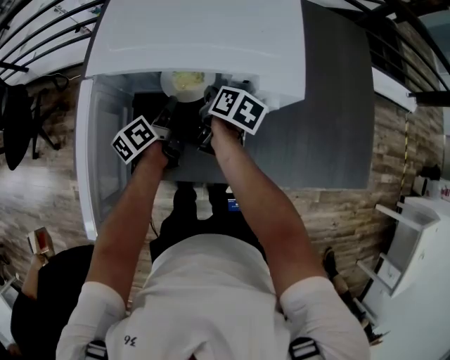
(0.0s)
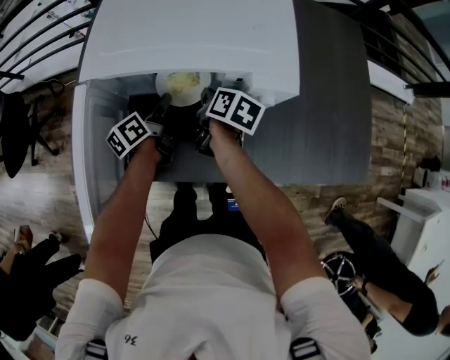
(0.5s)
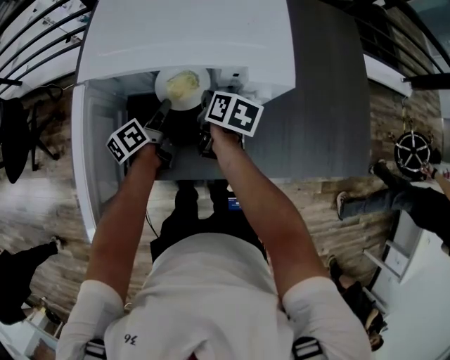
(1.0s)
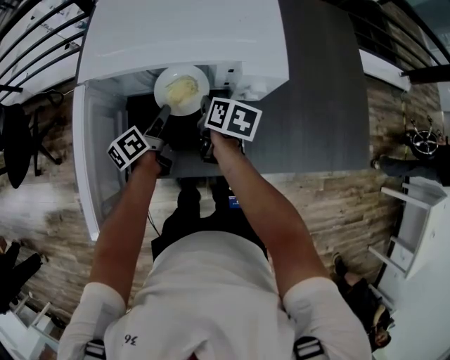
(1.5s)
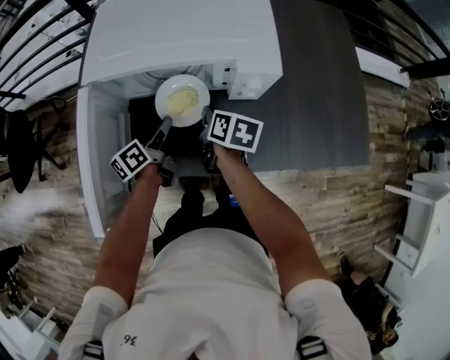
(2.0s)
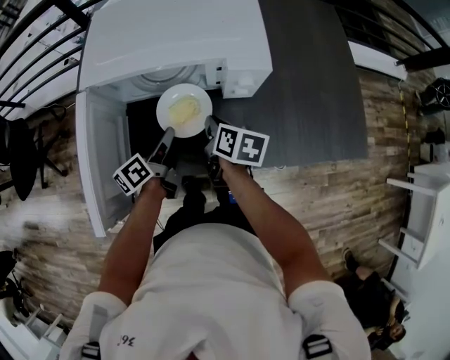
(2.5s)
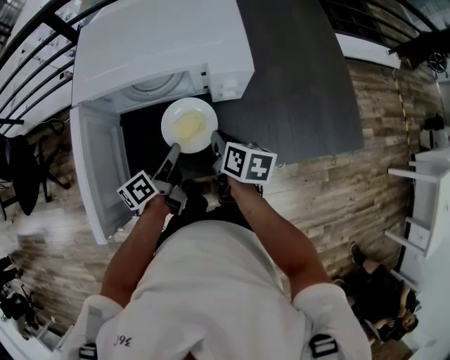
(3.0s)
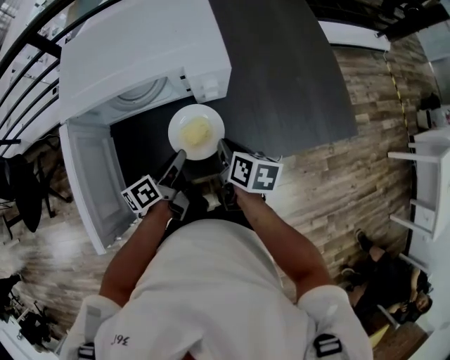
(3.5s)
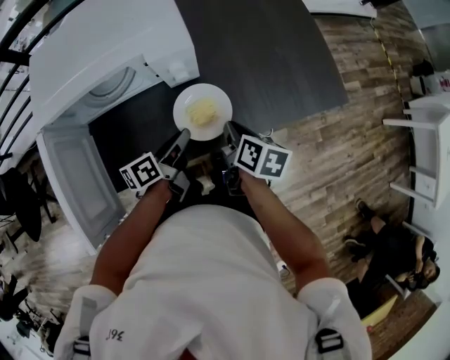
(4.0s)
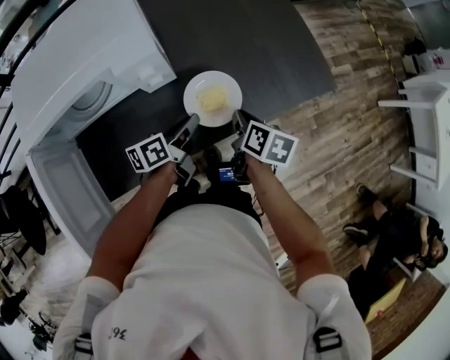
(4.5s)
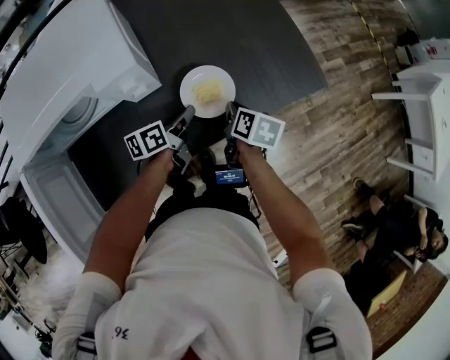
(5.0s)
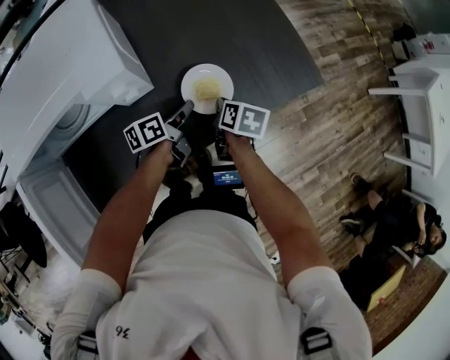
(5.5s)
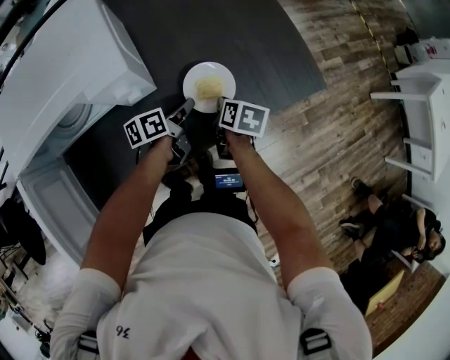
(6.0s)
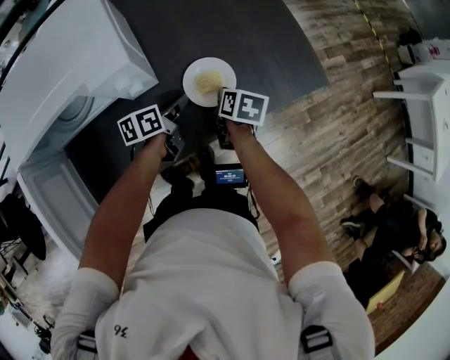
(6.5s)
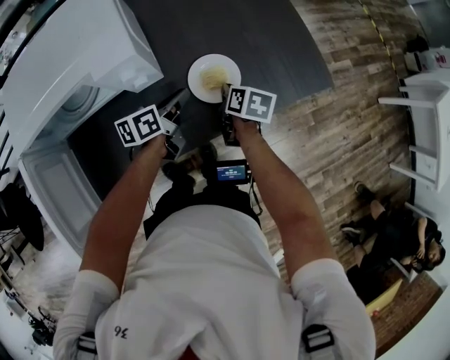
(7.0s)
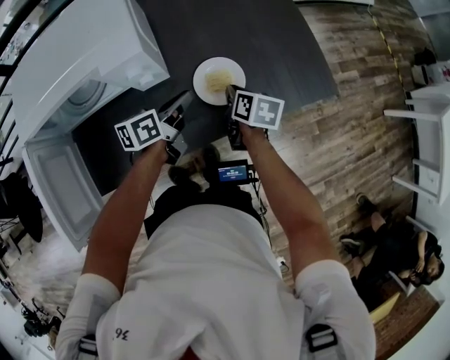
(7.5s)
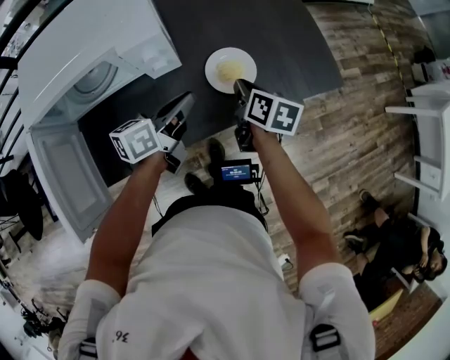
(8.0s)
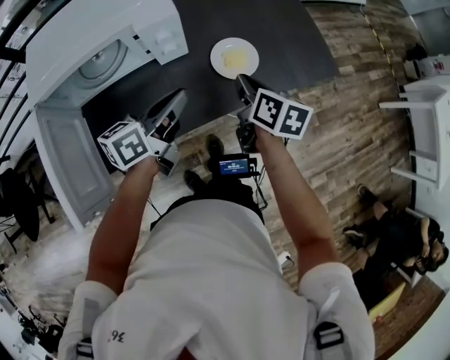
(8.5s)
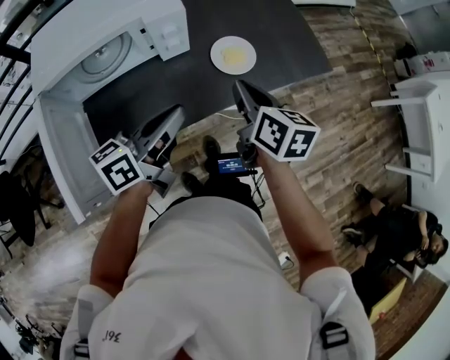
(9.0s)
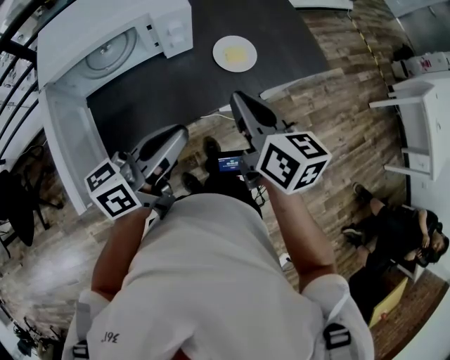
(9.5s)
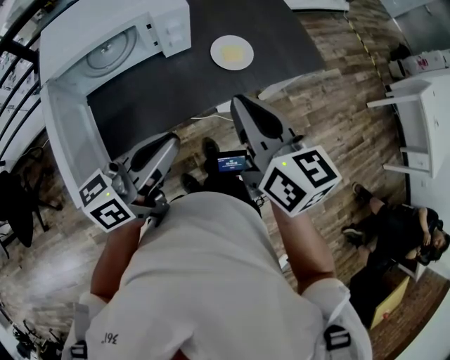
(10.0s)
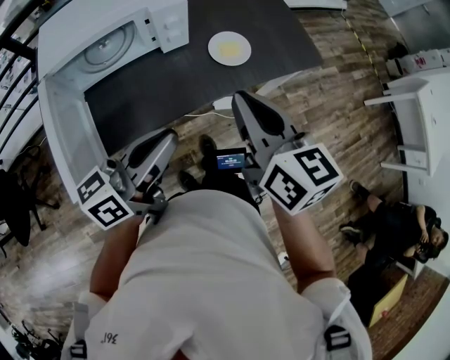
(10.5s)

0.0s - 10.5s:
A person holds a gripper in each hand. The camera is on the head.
0.0s - 2.0s: The grippers both shift backward by approximately 5 cm.
2.0s - 4.0s: The right gripper travels to the right and backward by about 25 cm. The left gripper moves to the right, some 20 cm, and rotates some 30 degrees.
4.0s - 6.5s: The left gripper is displaced forward, to the right and downward by roughly 20 cm; the right gripper shifts about 15 cm forward, downward and to the right.
6.5s - 8.5s: Both grippers travel together upward and backward, roughly 20 cm. The left gripper rotates approximately 20 degrees, while the right gripper rotates approximately 20 degrees.
8.5s - 10.5s: The grippers both shift backward and upward by some 25 cm. The right gripper changes its angle by about 30 degrees.

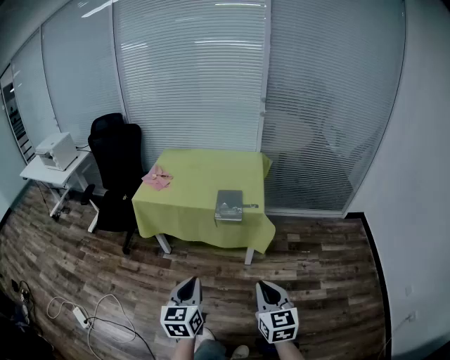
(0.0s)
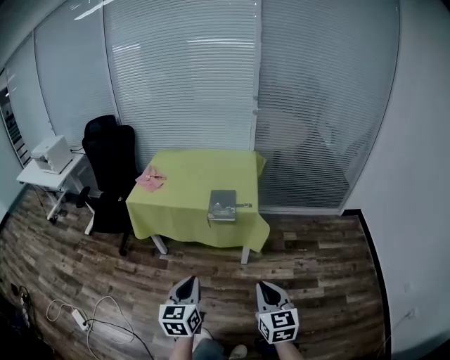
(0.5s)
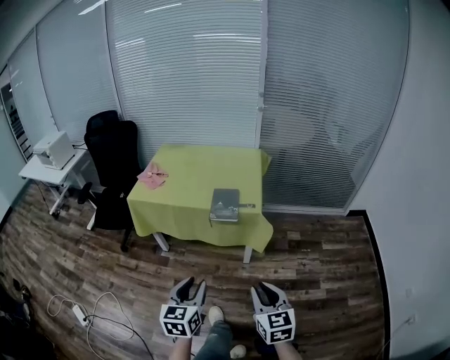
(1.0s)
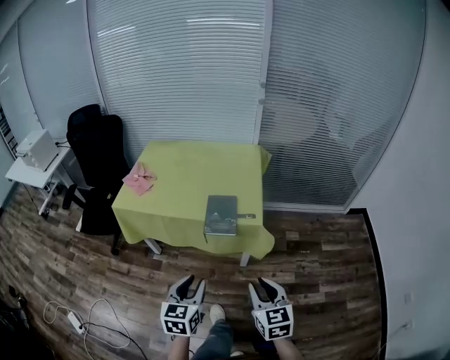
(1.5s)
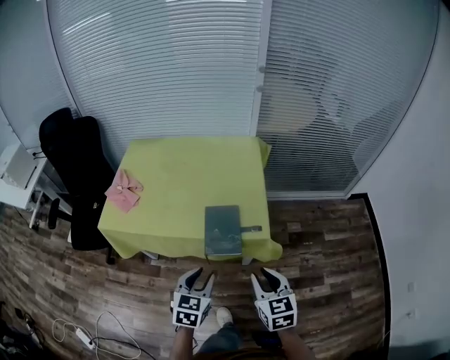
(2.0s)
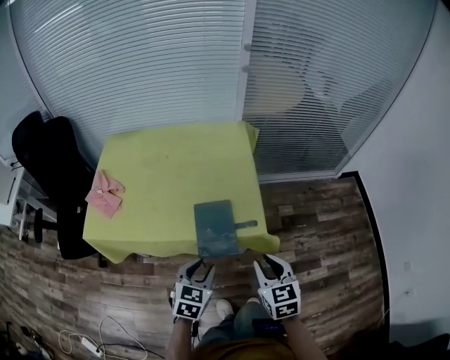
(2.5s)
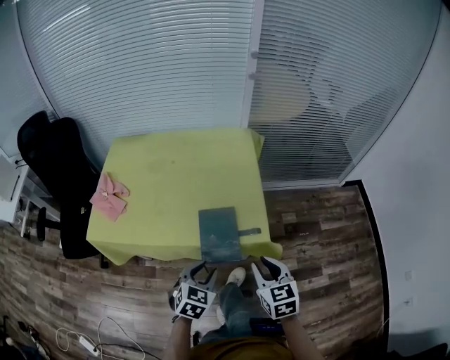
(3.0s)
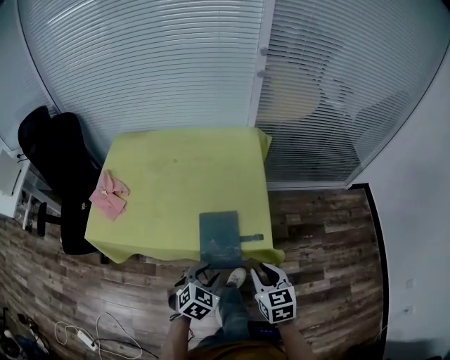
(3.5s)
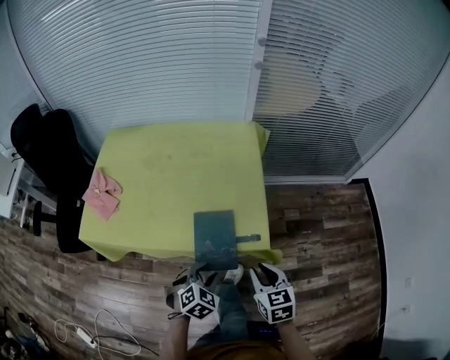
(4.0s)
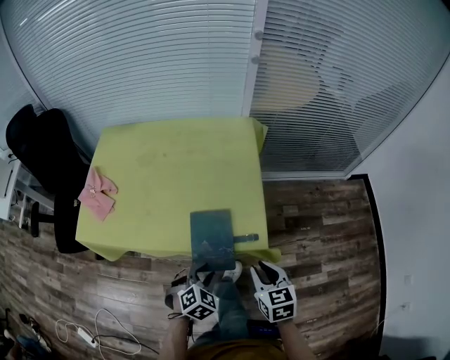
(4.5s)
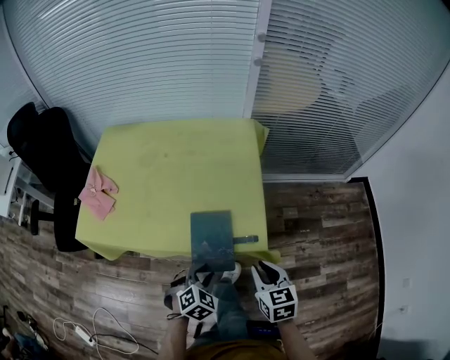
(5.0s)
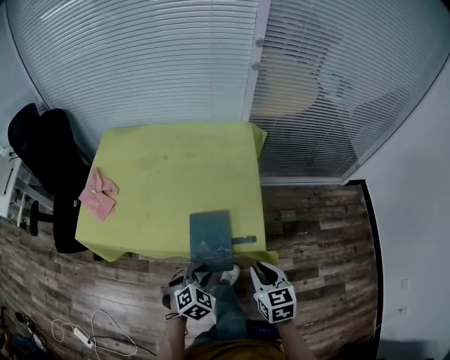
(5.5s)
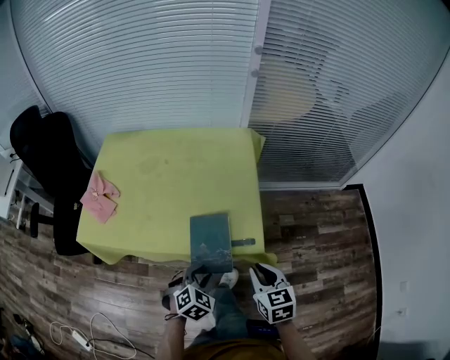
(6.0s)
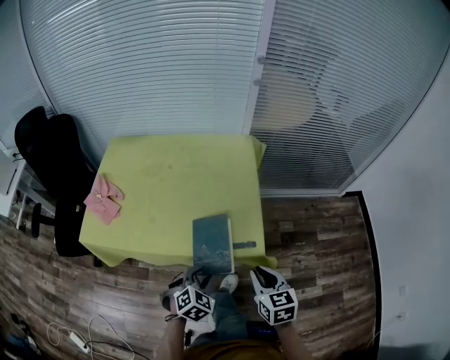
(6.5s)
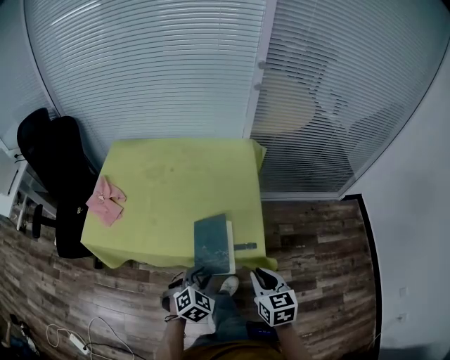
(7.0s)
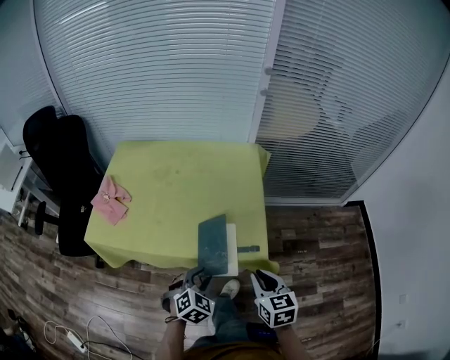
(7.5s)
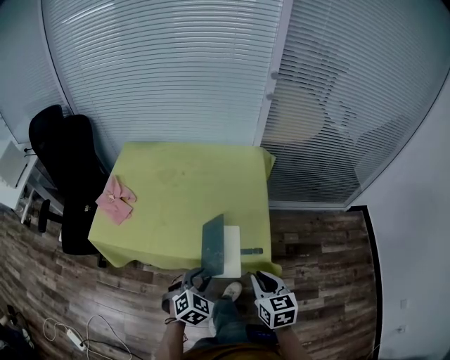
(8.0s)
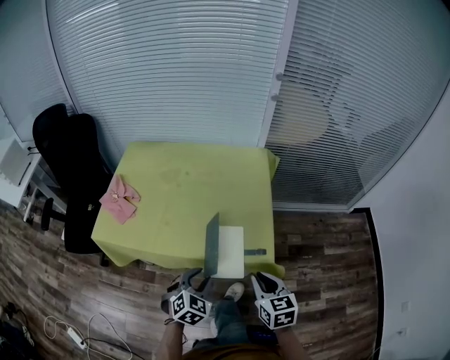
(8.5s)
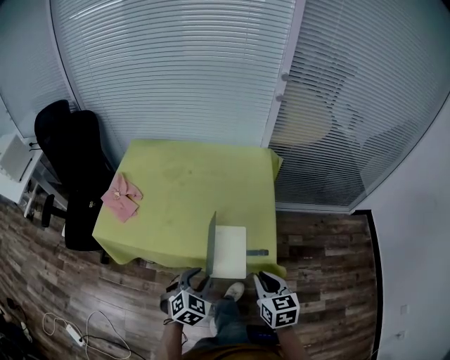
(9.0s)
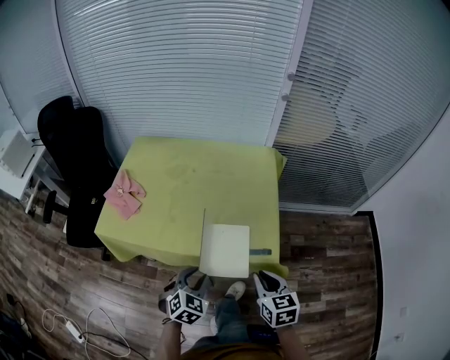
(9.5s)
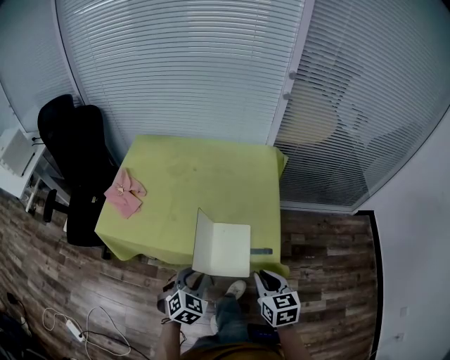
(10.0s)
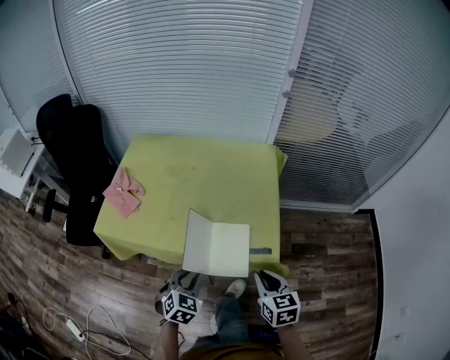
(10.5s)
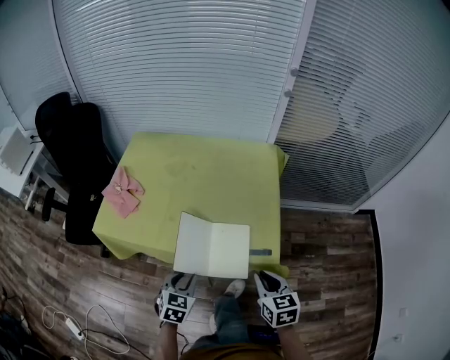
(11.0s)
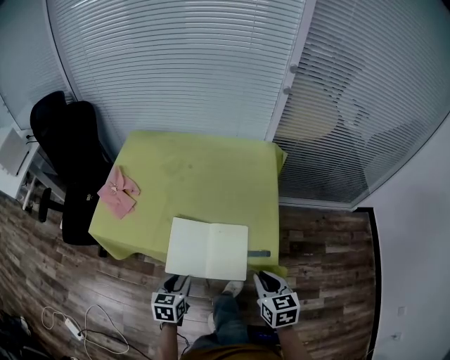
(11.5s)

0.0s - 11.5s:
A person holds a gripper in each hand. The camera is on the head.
0.0s - 2.0s: Both grippers move forward, about 30 cm. The left gripper turns by approximately 30 degrees, and opens. The right gripper opens.
2.0s - 4.0s: The left gripper moves downward and forward, about 15 cm, and swivels some 30 degrees. Meanwhile the right gripper is displaced forward and downward by approximately 15 cm.
4.0s - 7.5s: There are only small adjustments of the grippers.
7.5s - 9.5s: The left gripper is displaced to the left by about 5 cm.
9.5s - 11.5s: The left gripper goes some 10 cm to the left and downward, and turns by about 40 degrees.

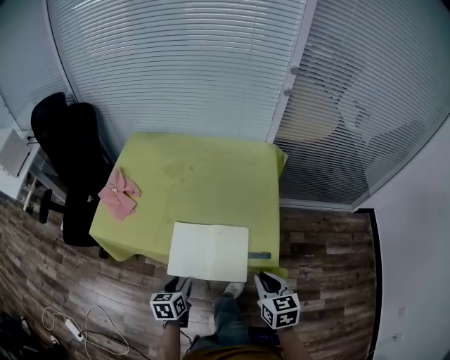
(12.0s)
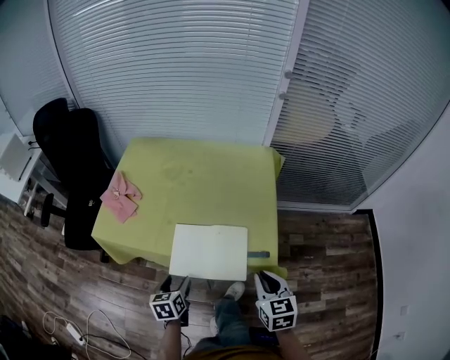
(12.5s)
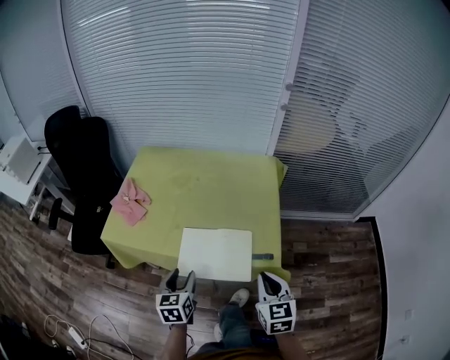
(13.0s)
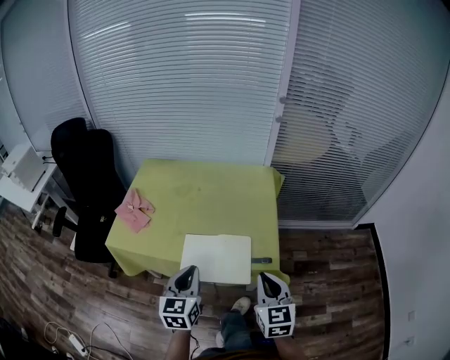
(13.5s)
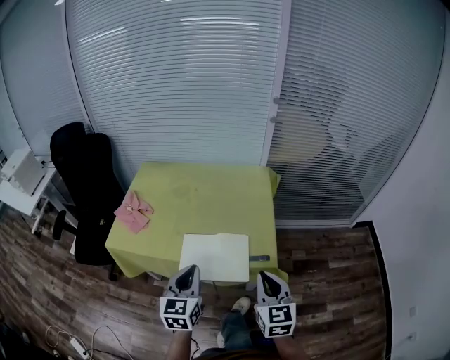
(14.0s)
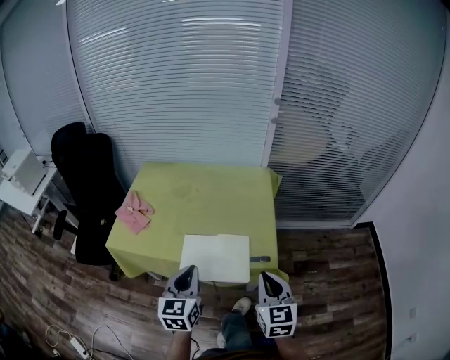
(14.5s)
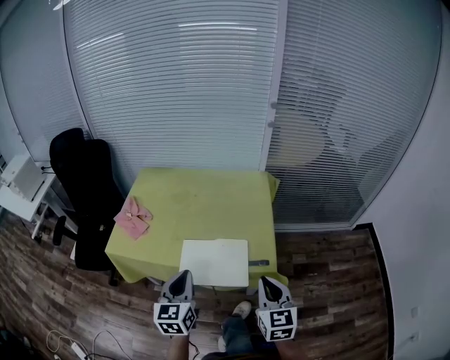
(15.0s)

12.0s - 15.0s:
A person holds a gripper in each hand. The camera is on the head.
12.0s - 13.5s: The left gripper heads upward, covering roughly 20 cm, turns by approximately 30 degrees, and closes up. The right gripper travels upward by approximately 10 cm, and changes its angle by about 20 degrees.
13.5s - 15.0s: There are only small adjustments of the grippers.

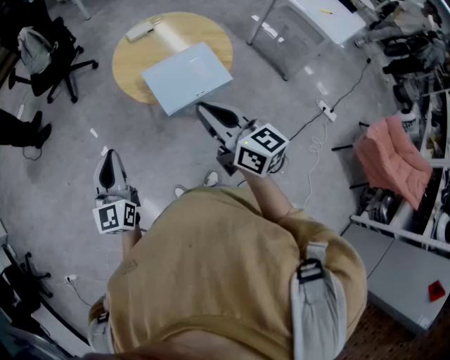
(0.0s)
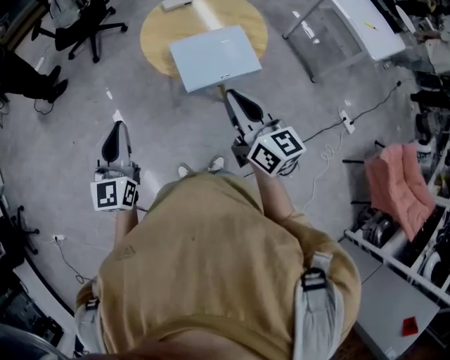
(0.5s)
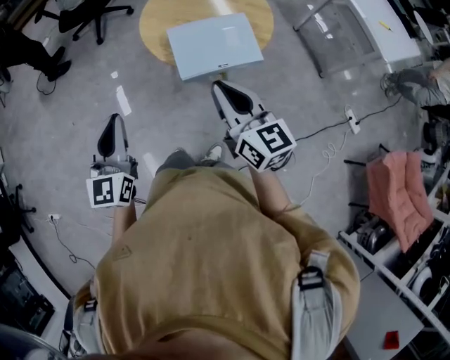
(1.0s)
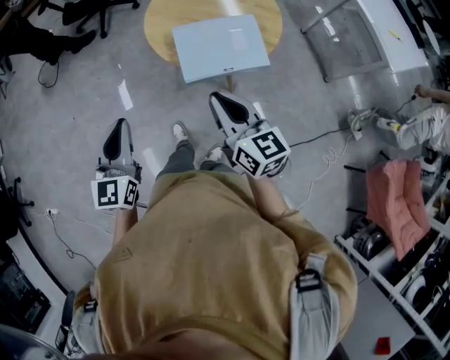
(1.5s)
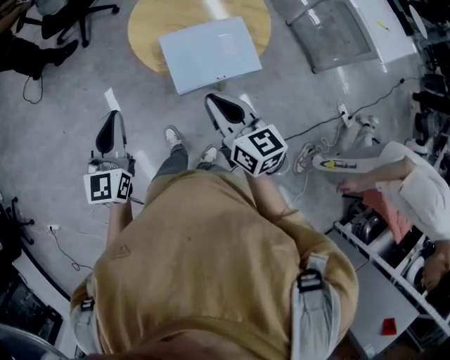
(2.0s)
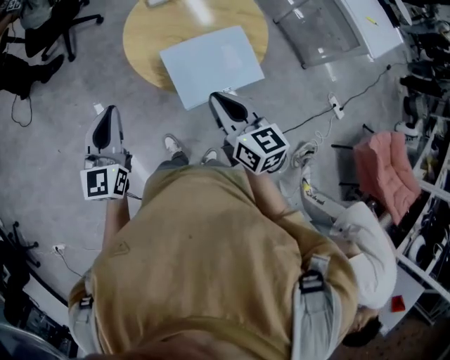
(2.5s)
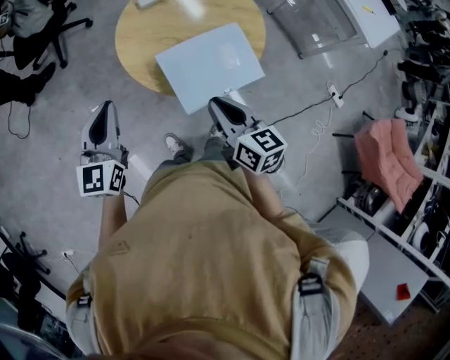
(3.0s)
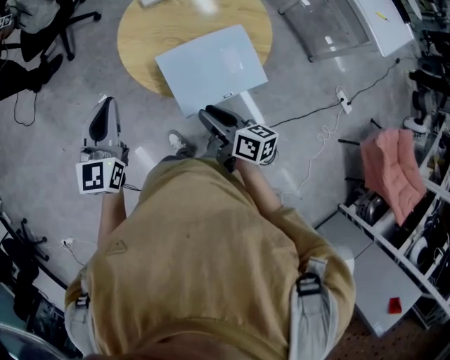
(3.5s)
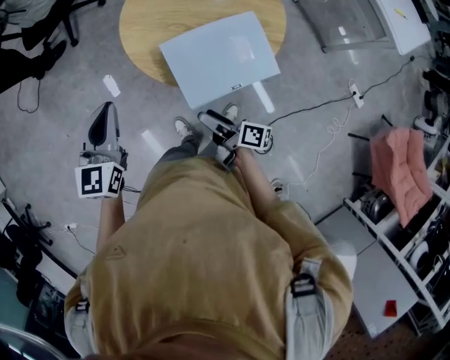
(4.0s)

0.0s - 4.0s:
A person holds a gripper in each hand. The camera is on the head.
0.0s - 2.0s: The left gripper goes approximately 10 cm forward and to the right; the right gripper moves downward and forward, some 15 cm.
2.0s - 4.0s: The right gripper is displaced downward by some 20 cm, rotates around the line of its fingers by about 60 degrees, clockwise from behind, and opens up. Meanwhile the left gripper is displaced forward by about 15 cm.
